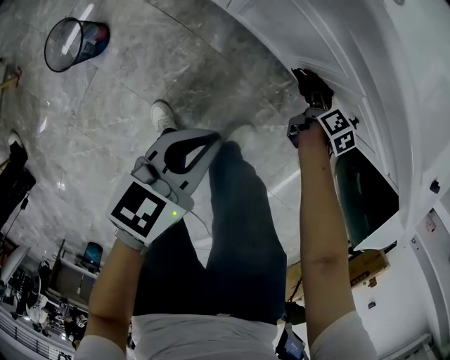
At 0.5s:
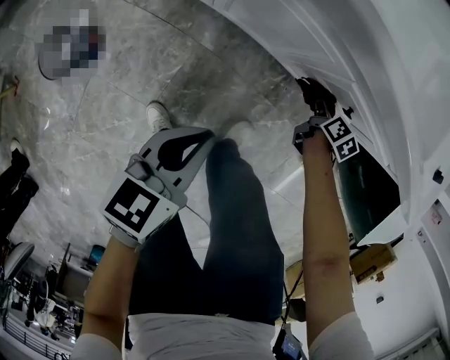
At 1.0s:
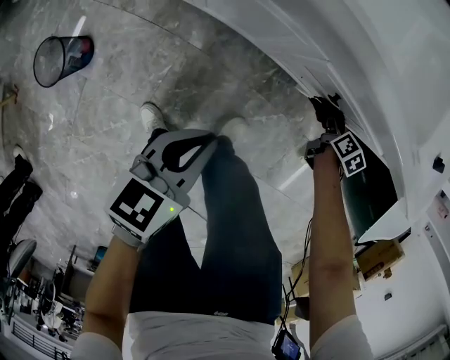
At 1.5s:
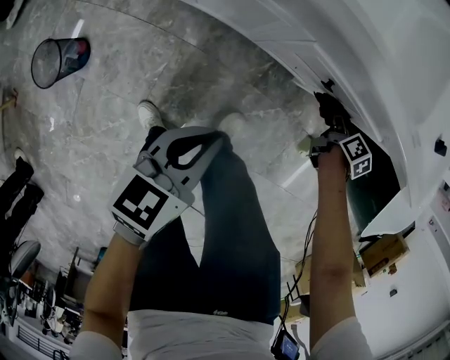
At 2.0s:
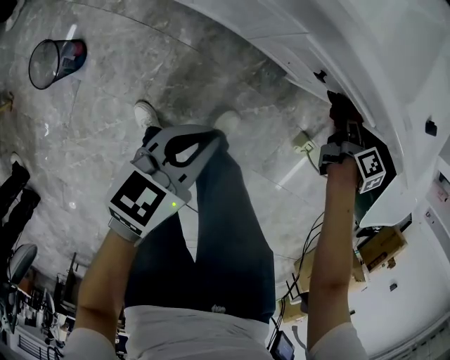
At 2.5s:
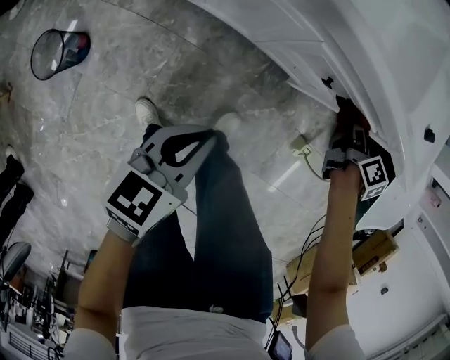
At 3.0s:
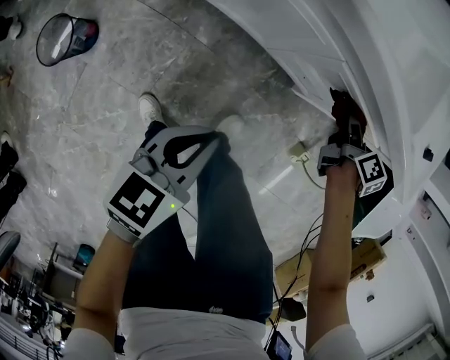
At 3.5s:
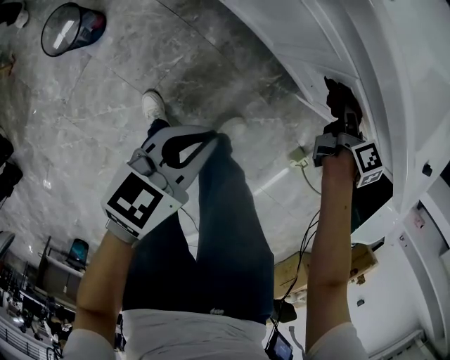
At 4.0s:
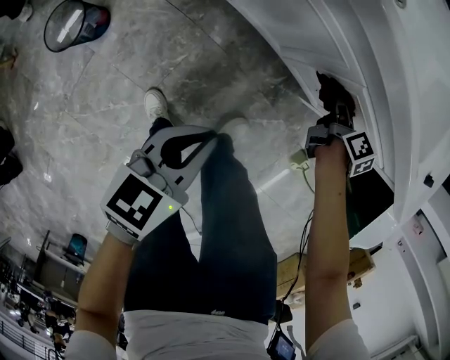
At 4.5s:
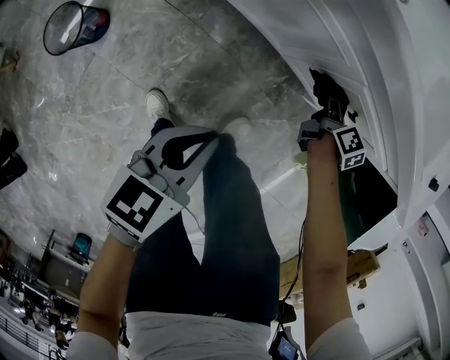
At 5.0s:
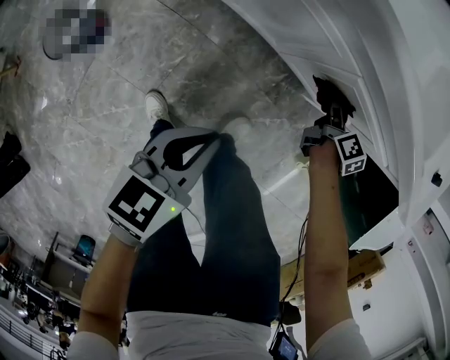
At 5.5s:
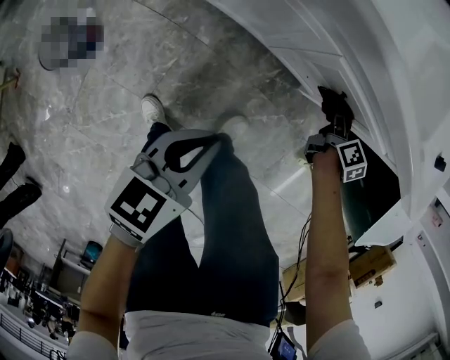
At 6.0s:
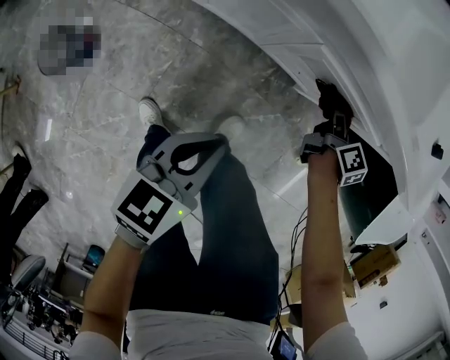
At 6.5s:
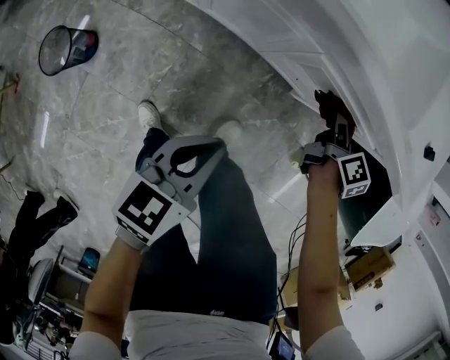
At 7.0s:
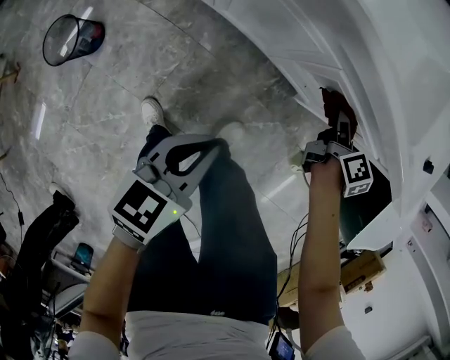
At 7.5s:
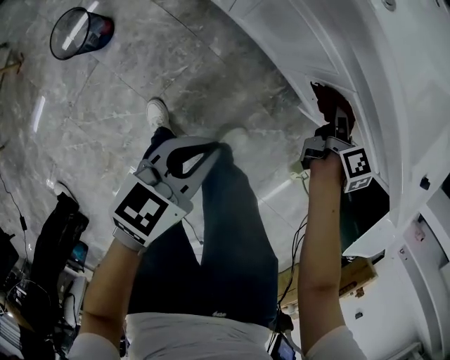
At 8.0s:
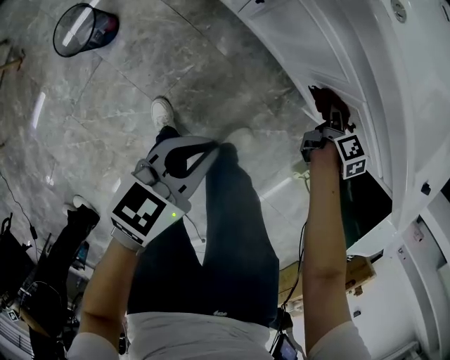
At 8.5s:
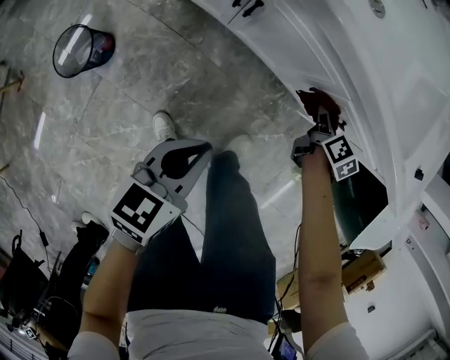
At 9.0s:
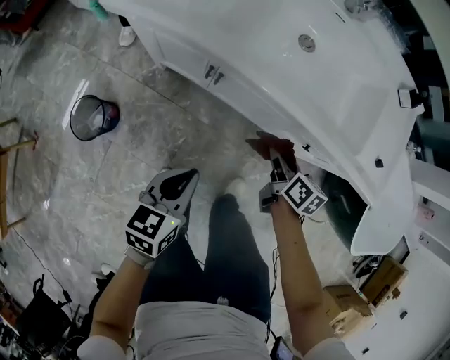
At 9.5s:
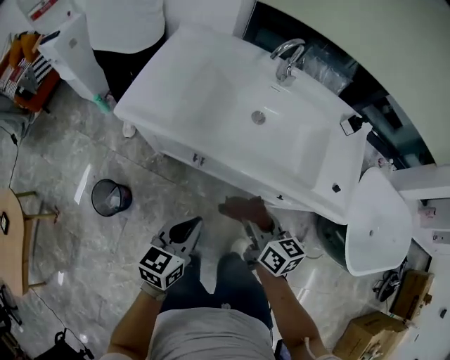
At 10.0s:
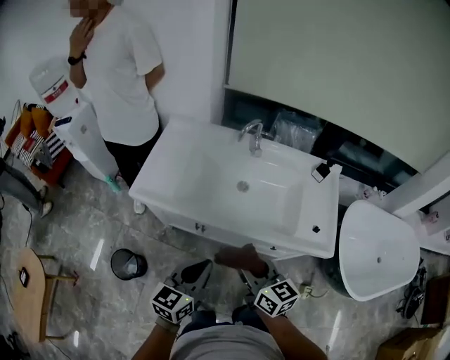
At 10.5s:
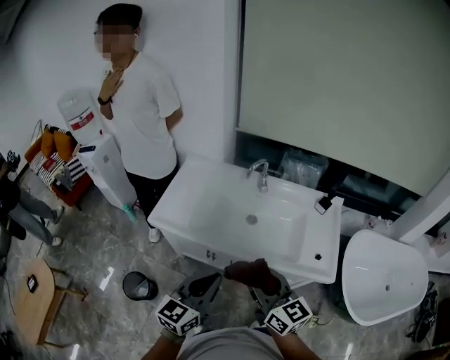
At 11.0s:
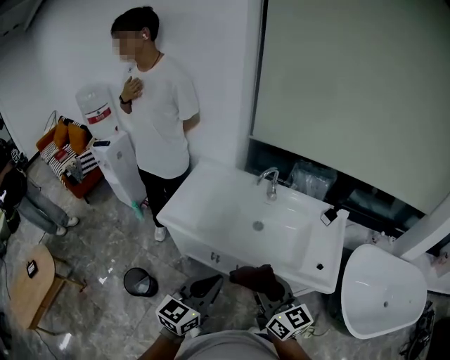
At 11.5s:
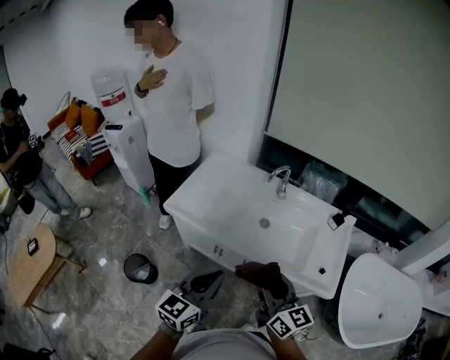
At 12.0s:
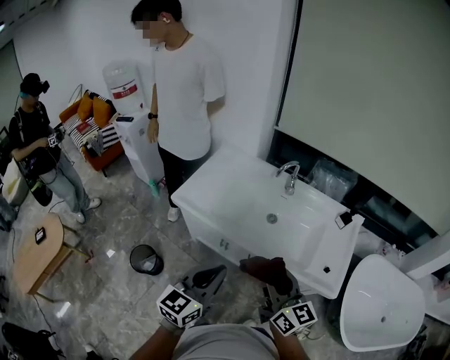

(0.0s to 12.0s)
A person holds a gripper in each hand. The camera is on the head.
0.0s - 2.0s: The right gripper moves to the right and upward, some 25 cm. Meanwhile the left gripper goes some 10 cm to the right.
2.0s - 4.0s: The right gripper travels to the left by roughly 20 cm. The left gripper travels to the left and backward by some 10 cm.
4.0s - 6.0s: The two grippers go some 10 cm to the right.
6.0s - 8.0s: Both grippers move to the left, about 15 cm.
8.0s - 10.0s: Both grippers move upward, about 40 cm. The right gripper points its fingers approximately 30 degrees further upward, while the left gripper swivels some 30 degrees.
10.0s - 12.0s: Both grippers move upward, about 10 cm.

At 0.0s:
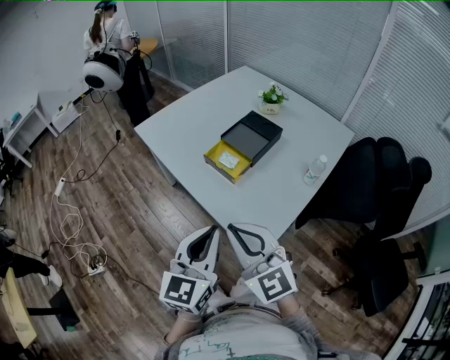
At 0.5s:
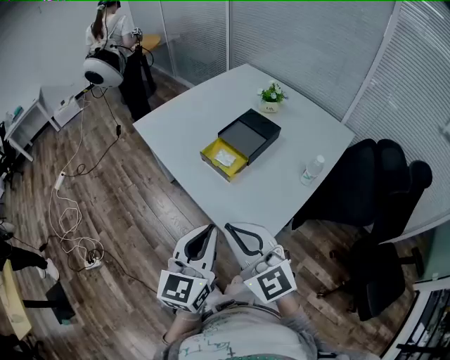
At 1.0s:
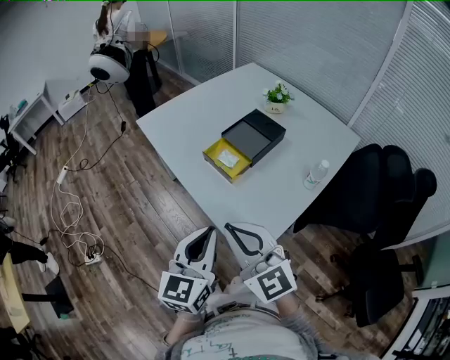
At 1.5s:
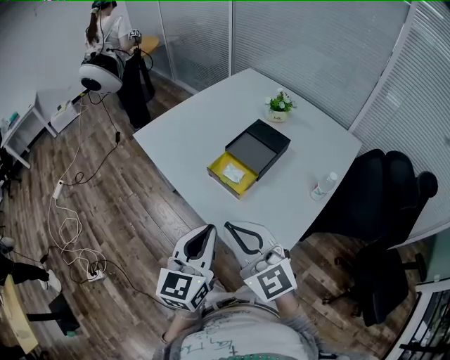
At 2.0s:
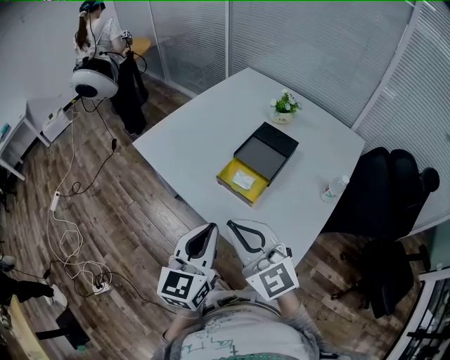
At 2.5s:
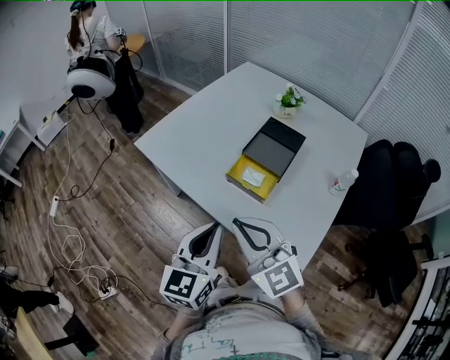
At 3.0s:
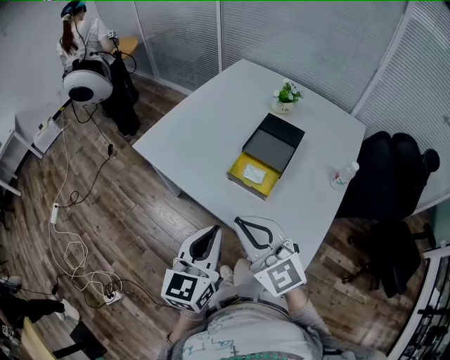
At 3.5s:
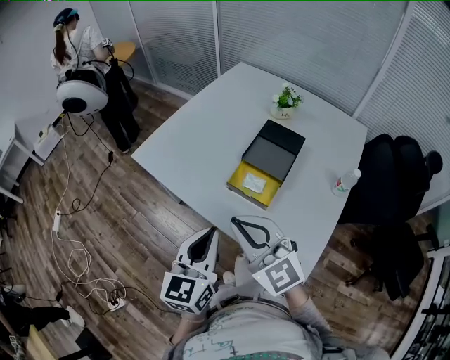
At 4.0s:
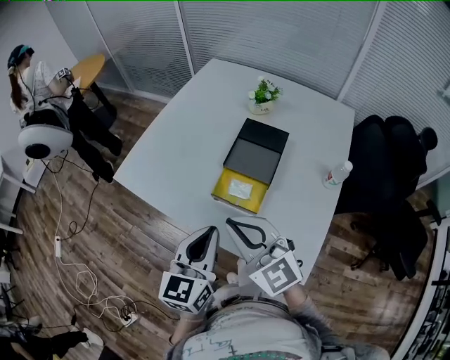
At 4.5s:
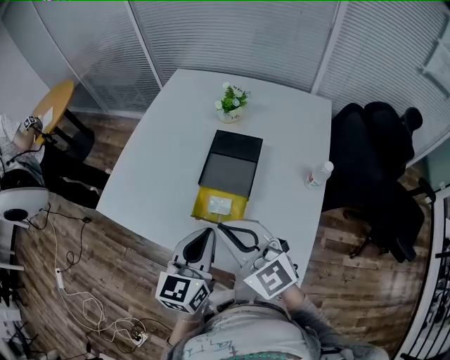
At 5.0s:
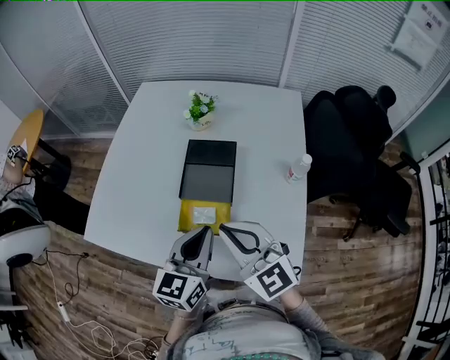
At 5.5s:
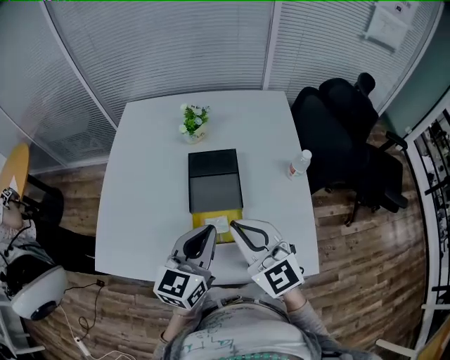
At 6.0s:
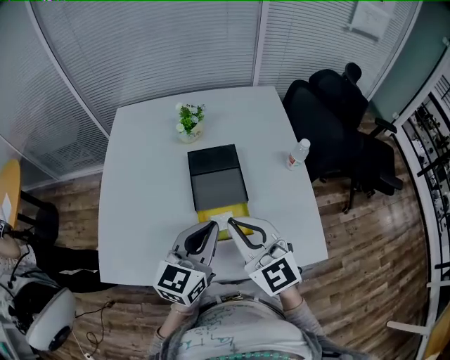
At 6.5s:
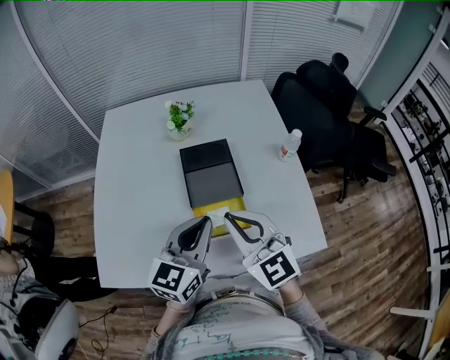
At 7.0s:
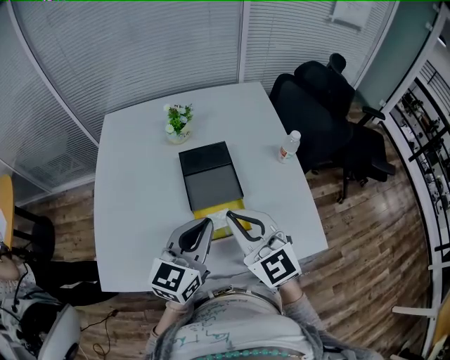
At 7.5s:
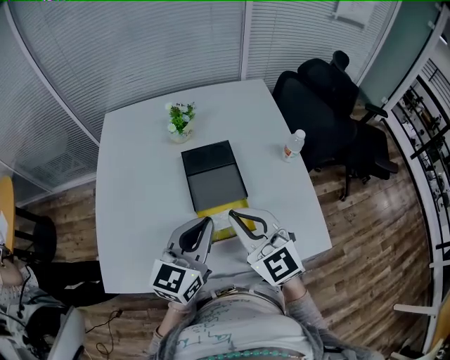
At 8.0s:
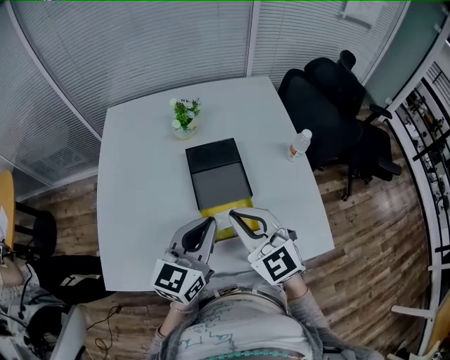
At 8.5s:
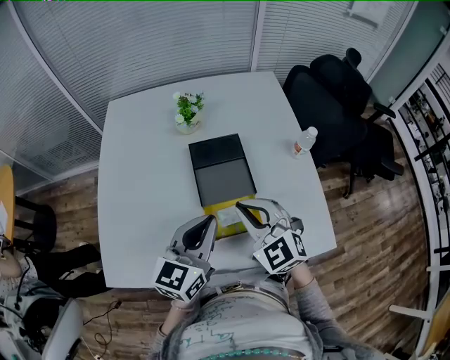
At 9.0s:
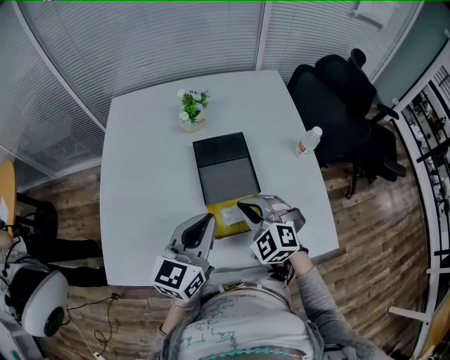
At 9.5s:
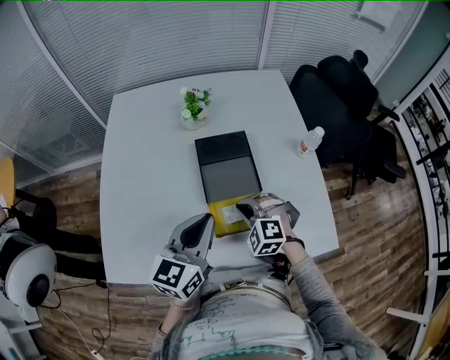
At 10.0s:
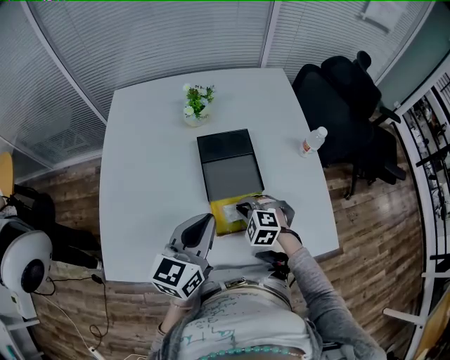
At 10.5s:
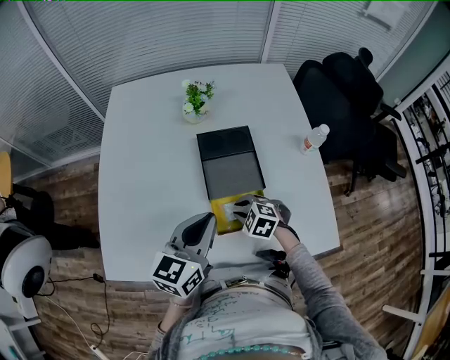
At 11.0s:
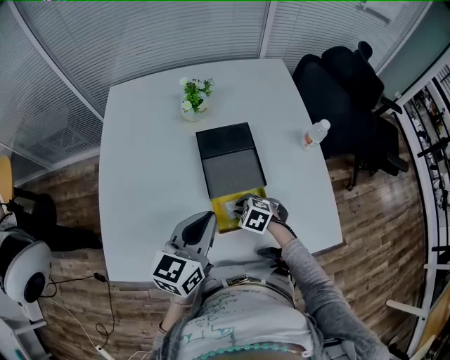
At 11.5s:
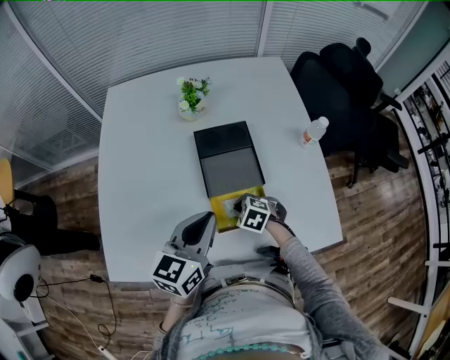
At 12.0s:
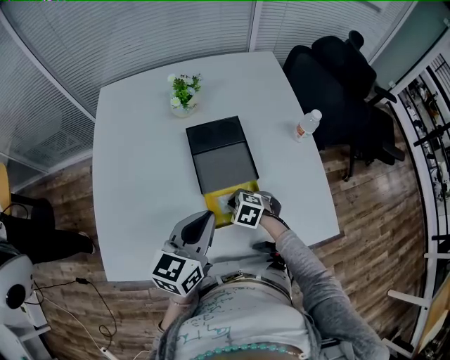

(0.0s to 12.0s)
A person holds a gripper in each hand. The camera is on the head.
0.0s - 2.0s: The grippers both shift forward and to the left by approximately 20 cm.
2.0s - 4.0s: The grippers both shift forward by approximately 15 cm.
4.0s - 6.0s: The left gripper shifts by approximately 15 cm, and turns by some 40 degrees; the right gripper changes place by about 15 cm, and swivels approximately 40 degrees.
6.0s - 8.0s: The right gripper shifts by about 5 cm.
8.0s - 10.0s: The left gripper moves roughly 5 cm, while the right gripper is displaced downward by roughly 25 cm, and tips its fingers downward by roughly 40 degrees.
10.0s - 12.0s: The right gripper moves downward, approximately 5 cm, and swivels about 20 degrees.

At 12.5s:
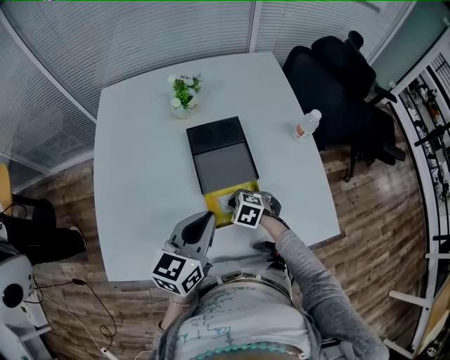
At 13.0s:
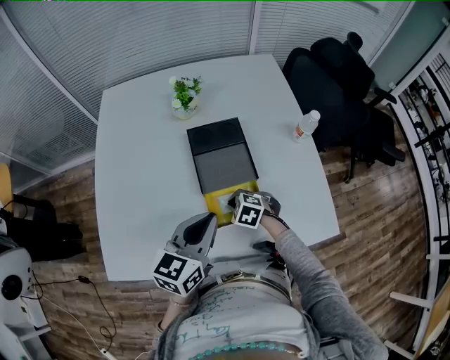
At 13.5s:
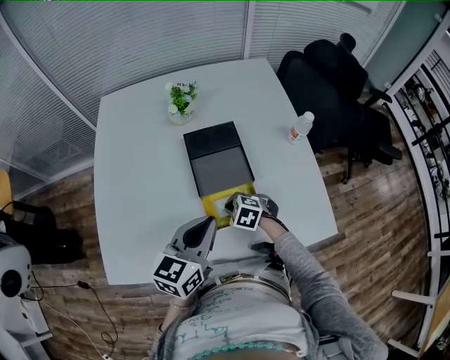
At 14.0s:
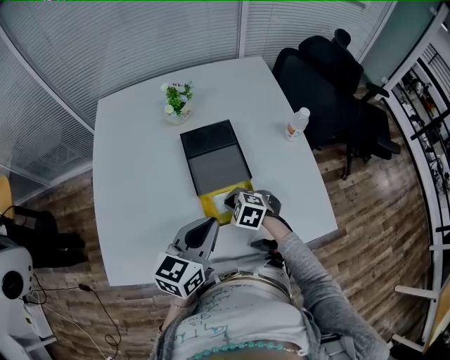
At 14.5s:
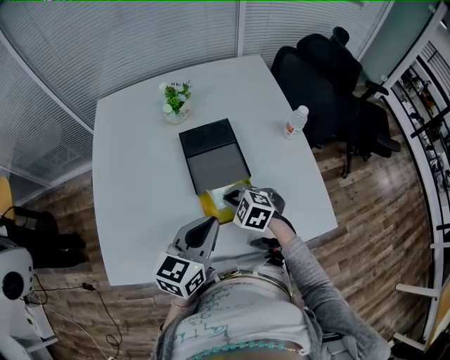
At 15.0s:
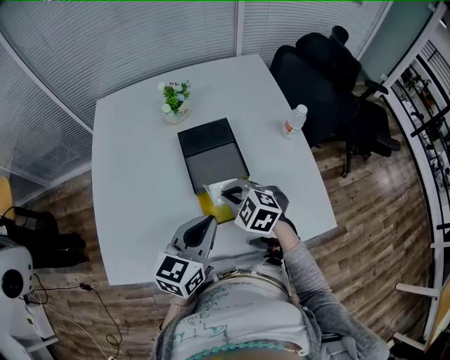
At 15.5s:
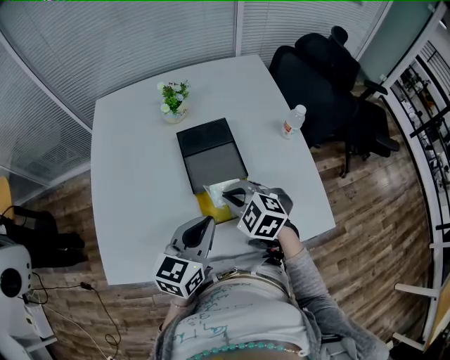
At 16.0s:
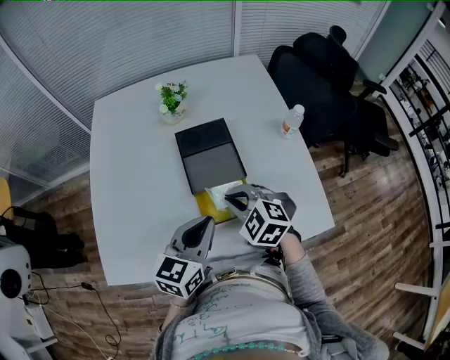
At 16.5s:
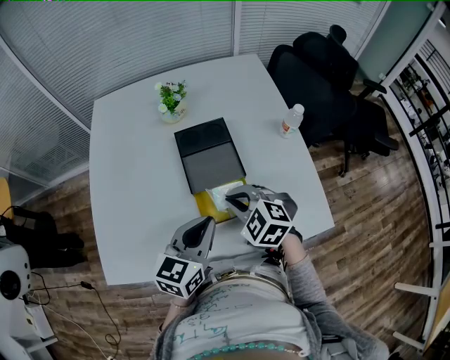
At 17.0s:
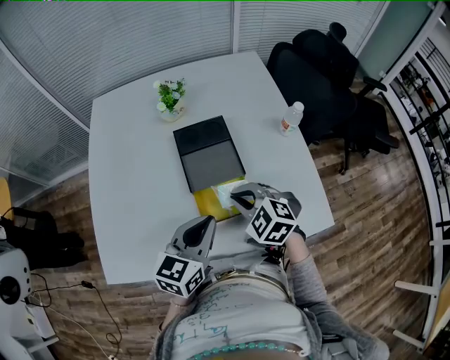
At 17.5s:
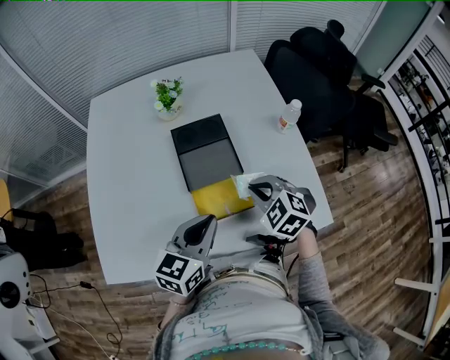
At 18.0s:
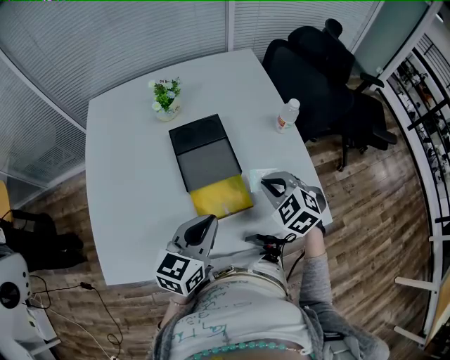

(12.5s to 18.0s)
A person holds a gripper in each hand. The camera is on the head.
12.5s - 14.5s: The right gripper shifts some 10 cm upward.
14.5s - 16.0s: The right gripper heads upward, covering about 10 cm.
16.0s - 18.0s: The right gripper moves to the right, about 15 cm.
